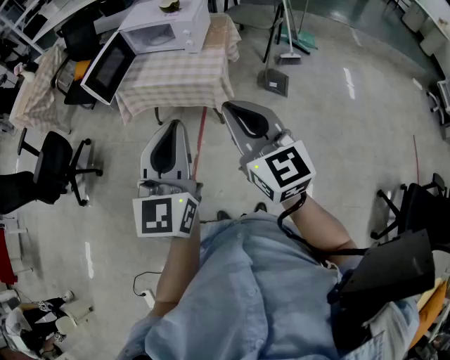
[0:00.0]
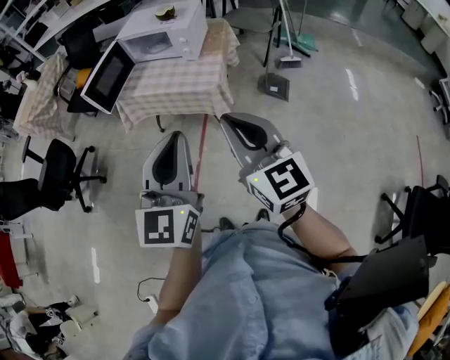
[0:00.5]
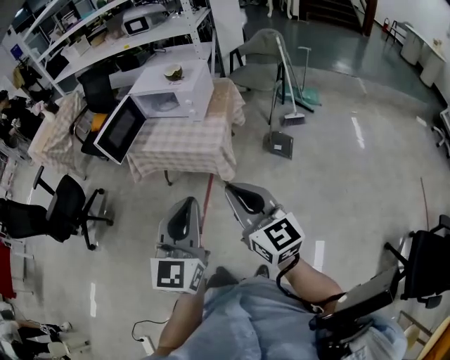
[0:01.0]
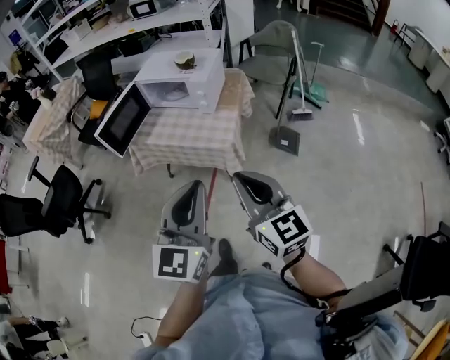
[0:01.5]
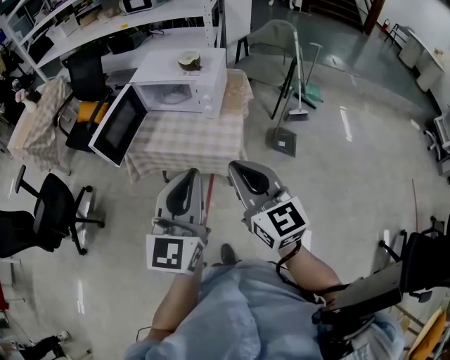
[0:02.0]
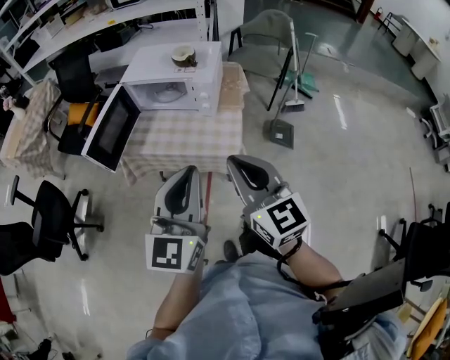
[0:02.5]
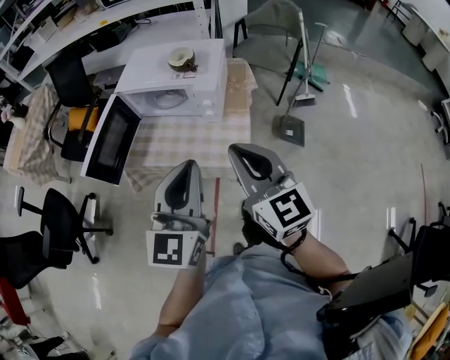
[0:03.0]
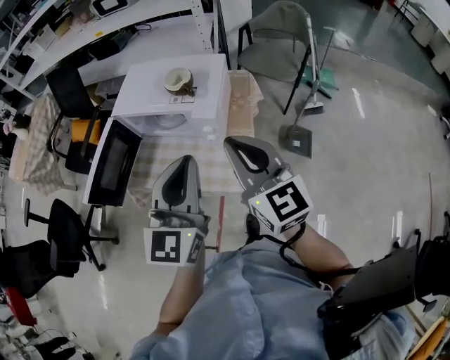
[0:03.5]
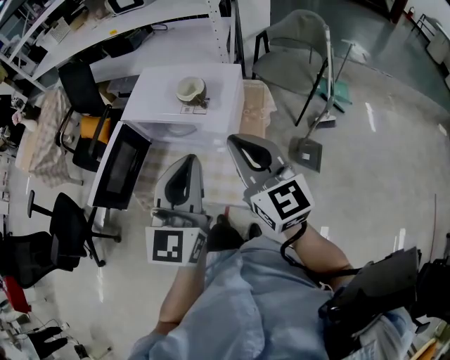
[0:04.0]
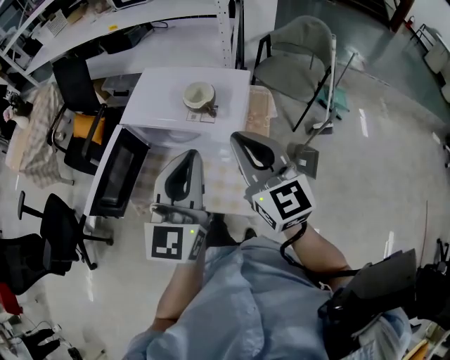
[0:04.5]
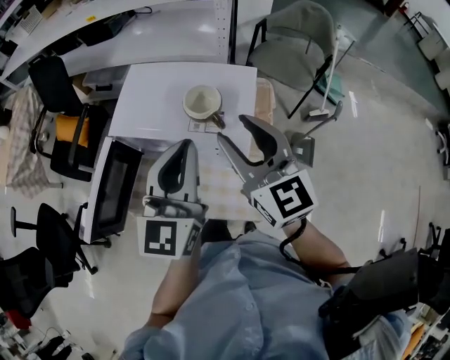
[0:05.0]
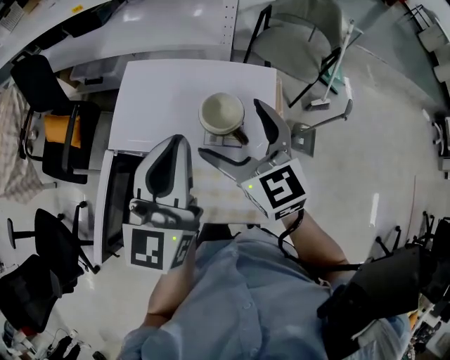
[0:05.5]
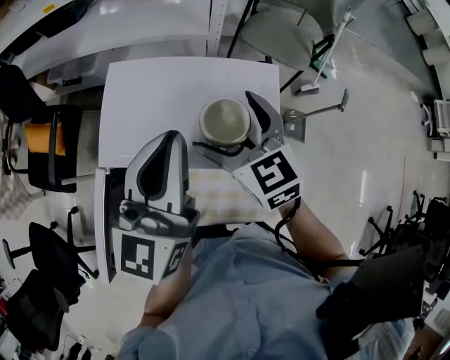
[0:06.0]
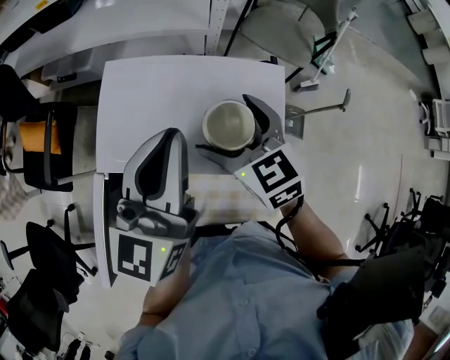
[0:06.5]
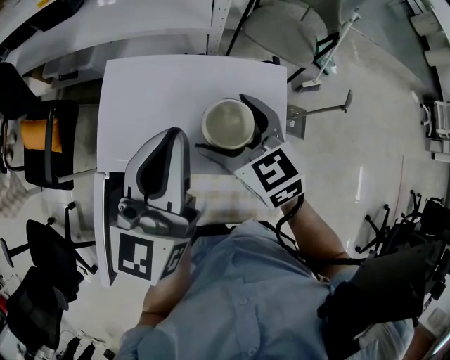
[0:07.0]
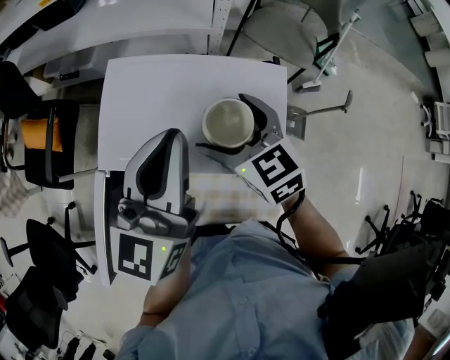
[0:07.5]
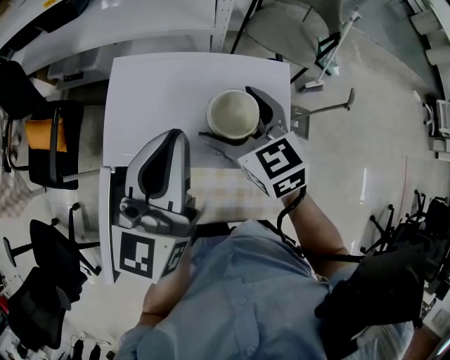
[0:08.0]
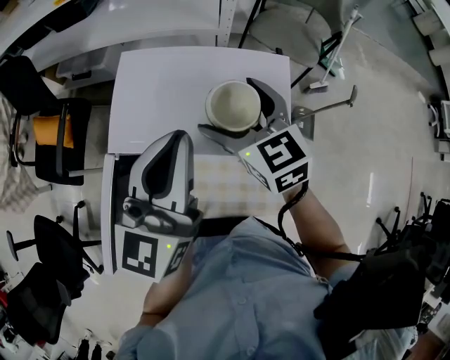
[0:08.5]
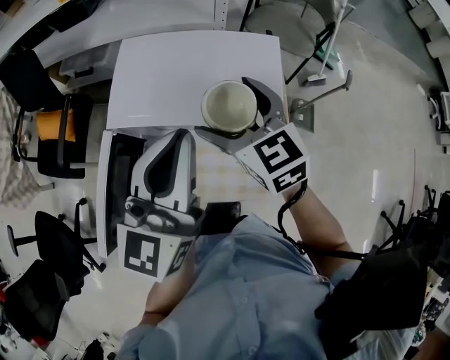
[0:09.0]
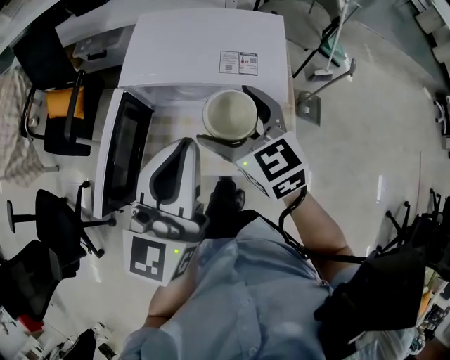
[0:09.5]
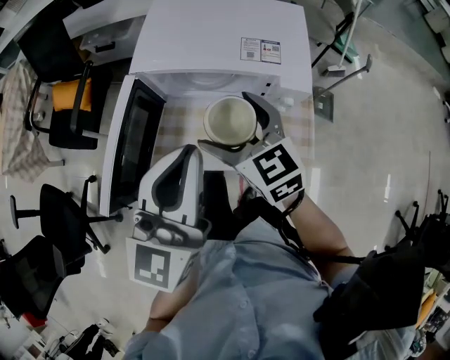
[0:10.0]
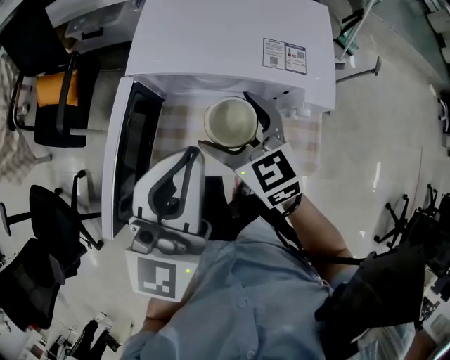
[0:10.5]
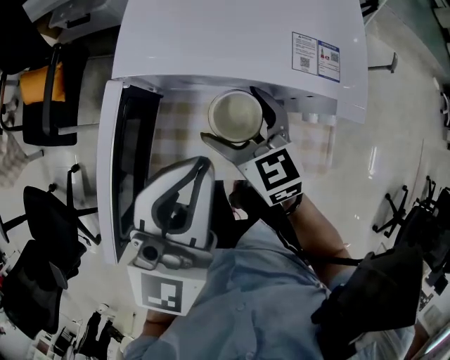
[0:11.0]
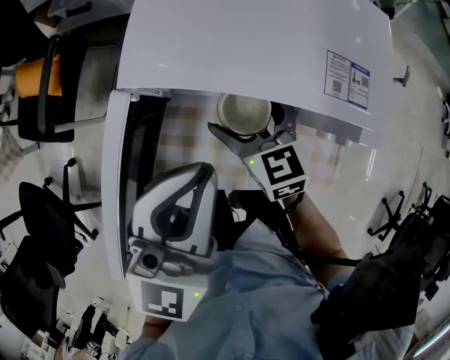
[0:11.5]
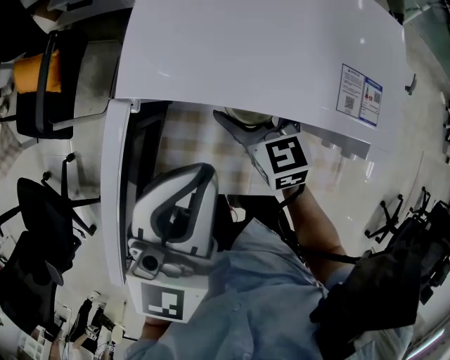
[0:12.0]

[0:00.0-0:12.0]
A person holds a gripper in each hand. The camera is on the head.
0:00.0 to 0:02.0: The two grippers go about 20 cm forward.
0:02.0 to 0:04.0: Both grippers move forward, some 30 cm.
0:04.0 to 0:06.0: The right gripper is displaced forward, downward and to the left by about 30 cm, turns by about 30 degrees, and opens; the left gripper heads forward and to the left, covering approximately 30 cm, and rotates about 20 degrees.
0:06.0 to 0:08.0: The grippers make only small movements.
0:08.0 to 0:10.0: The right gripper moves backward and to the left, some 25 cm. Meanwhile the left gripper goes roughly 25 cm backward.
0:10.0 to 0:12.0: The left gripper travels forward, downward and to the left by roughly 15 cm. The right gripper is displaced downward and forward by some 25 cm.

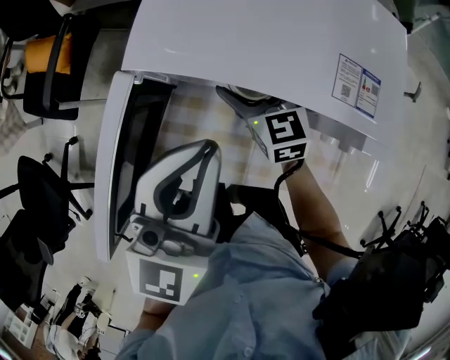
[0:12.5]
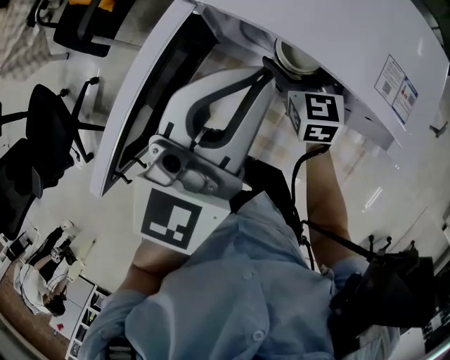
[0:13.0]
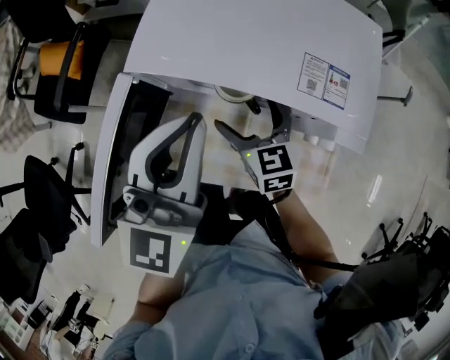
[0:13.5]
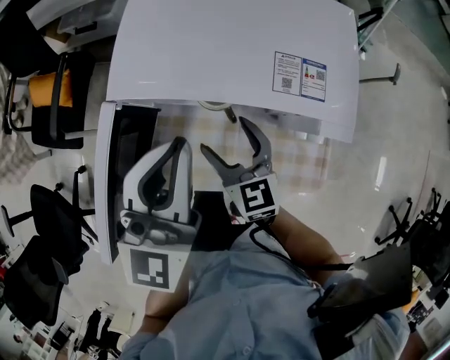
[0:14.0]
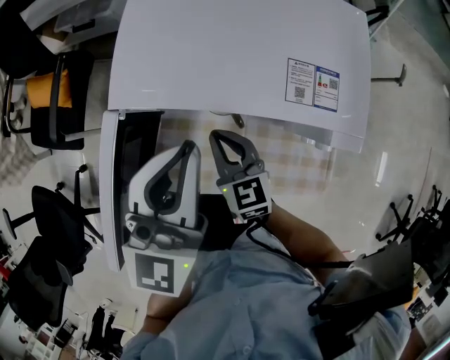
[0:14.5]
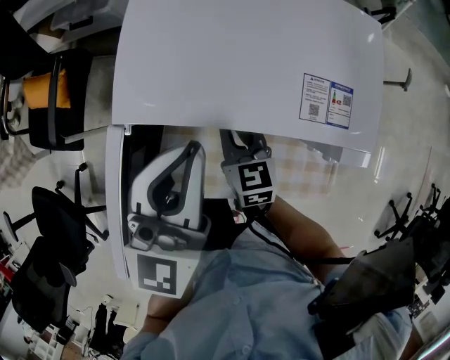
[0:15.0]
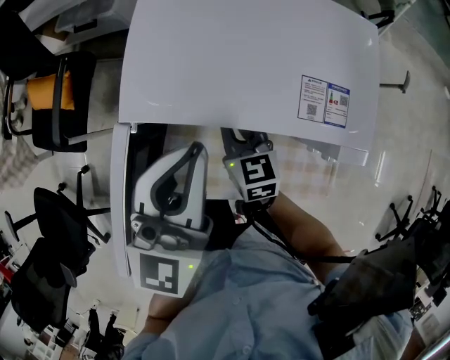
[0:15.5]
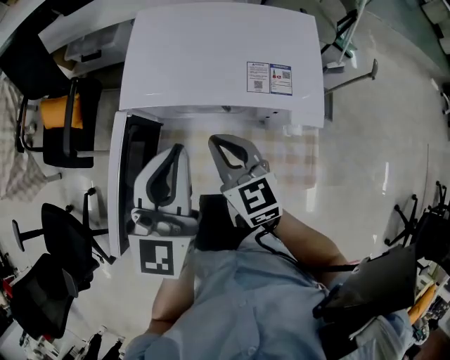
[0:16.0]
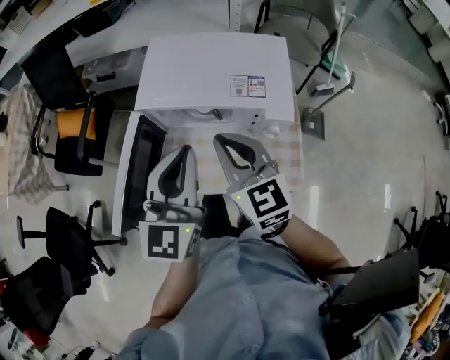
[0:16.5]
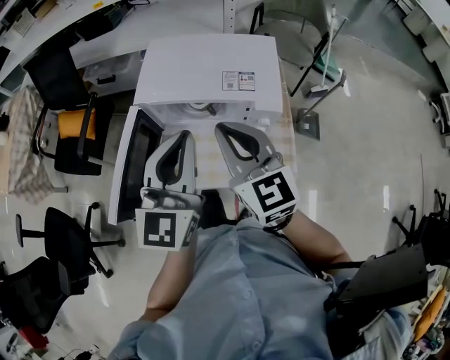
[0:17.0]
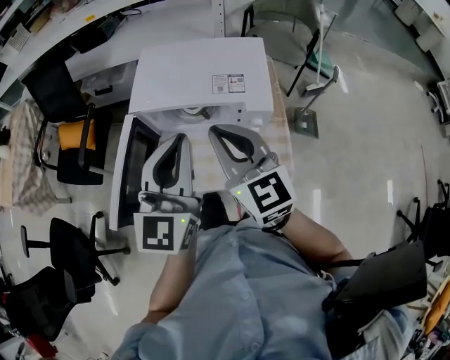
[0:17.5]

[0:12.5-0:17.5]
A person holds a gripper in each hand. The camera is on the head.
0:12.5 to 0:15.0: The right gripper closes.
0:15.0 to 0:17.5: The left gripper heads backward, upward and to the right, covering some 20 cm; the right gripper shifts approximately 35 cm upward and backward, and rotates approximately 30 degrees.

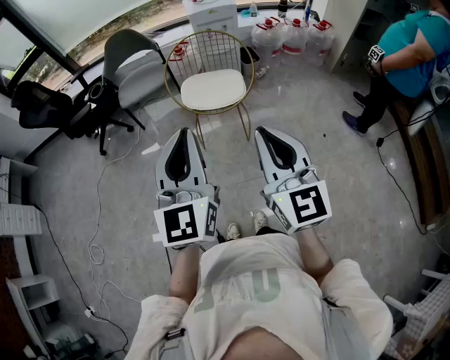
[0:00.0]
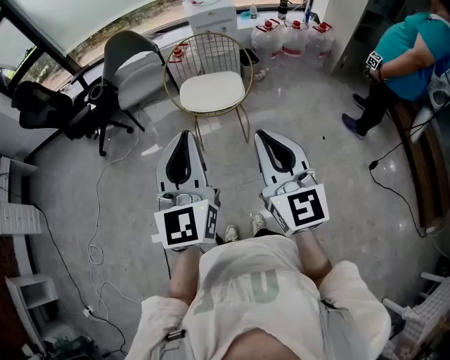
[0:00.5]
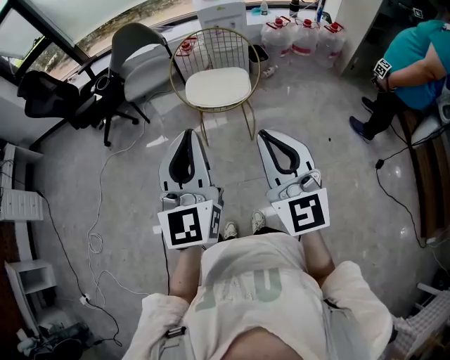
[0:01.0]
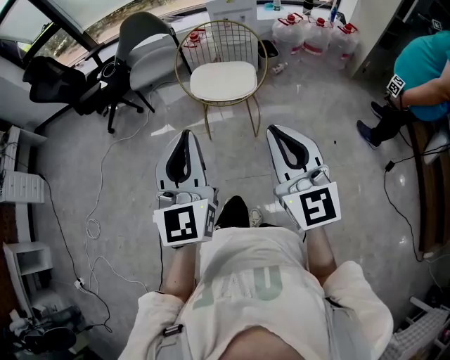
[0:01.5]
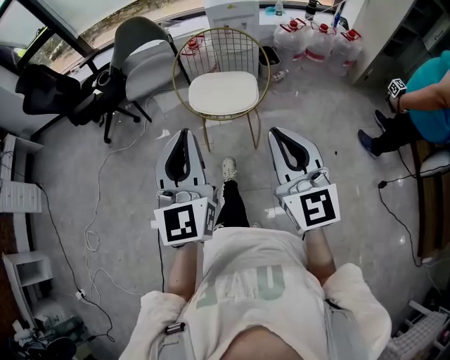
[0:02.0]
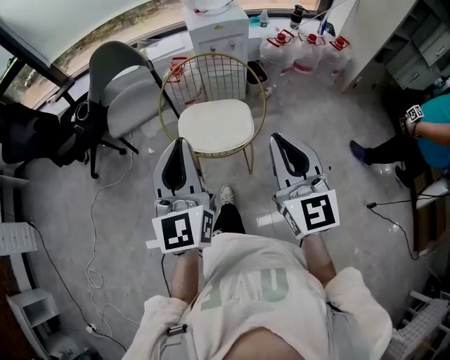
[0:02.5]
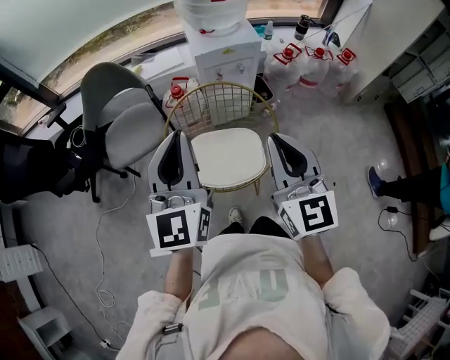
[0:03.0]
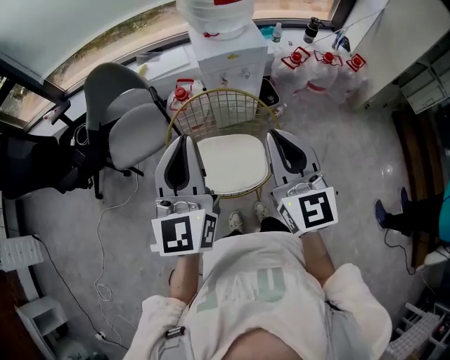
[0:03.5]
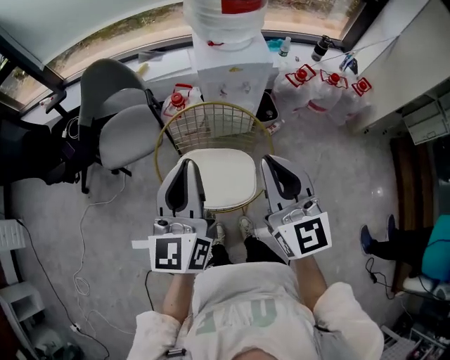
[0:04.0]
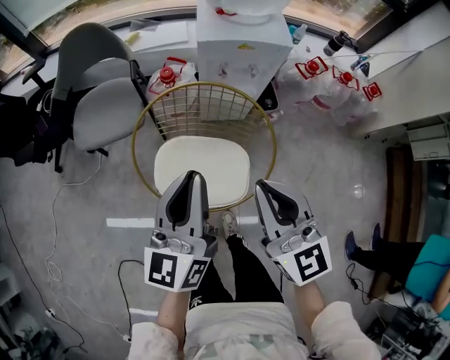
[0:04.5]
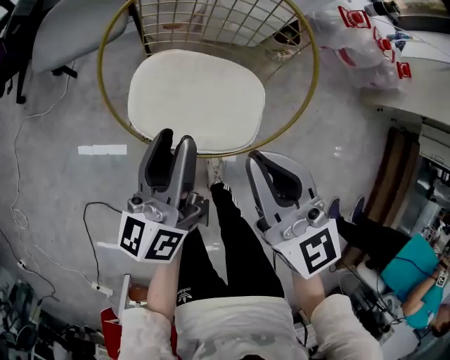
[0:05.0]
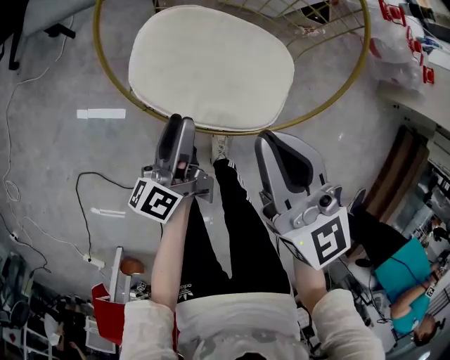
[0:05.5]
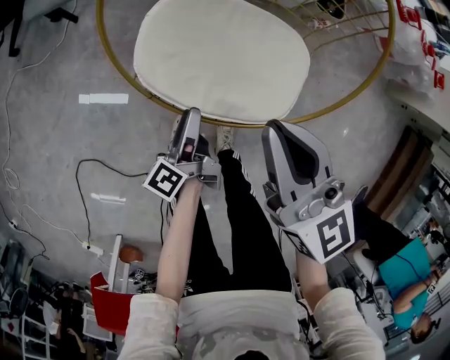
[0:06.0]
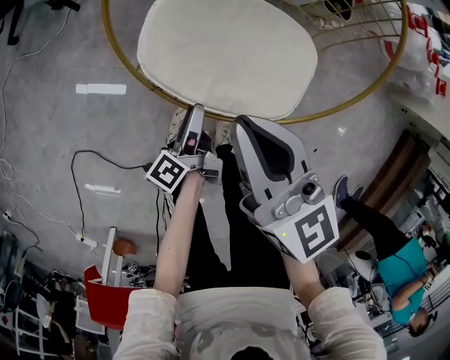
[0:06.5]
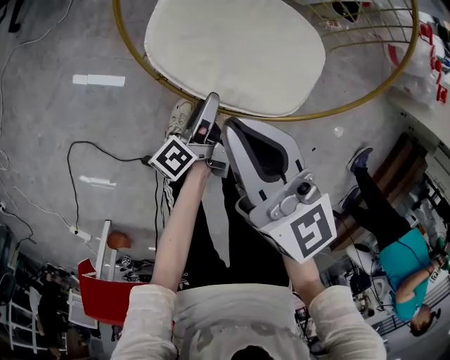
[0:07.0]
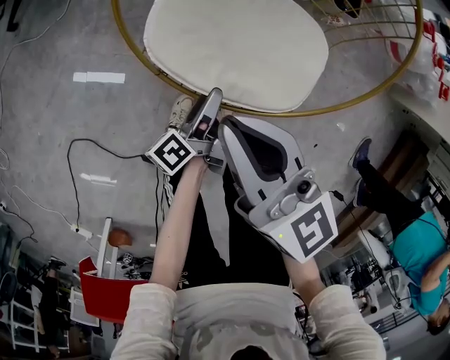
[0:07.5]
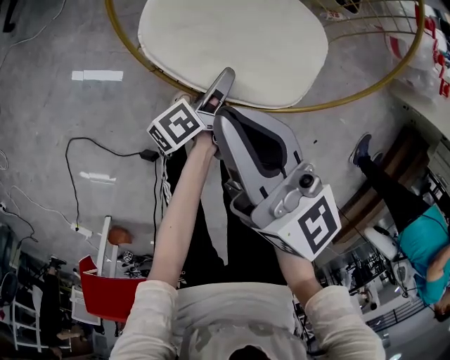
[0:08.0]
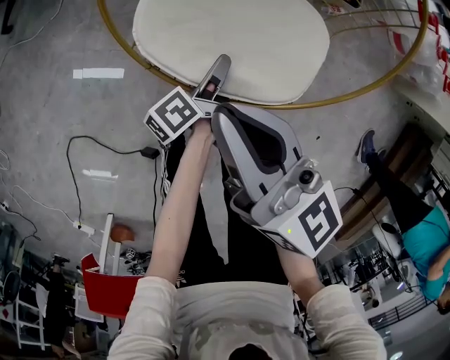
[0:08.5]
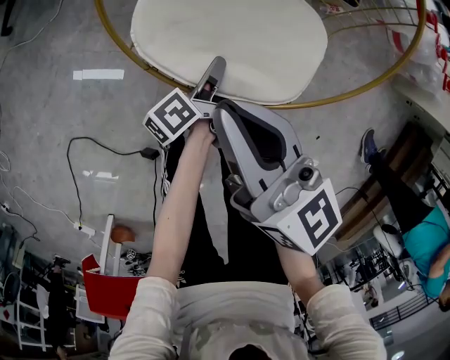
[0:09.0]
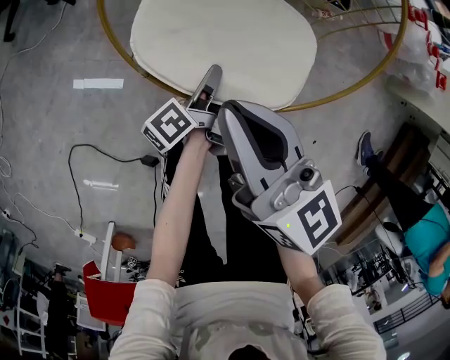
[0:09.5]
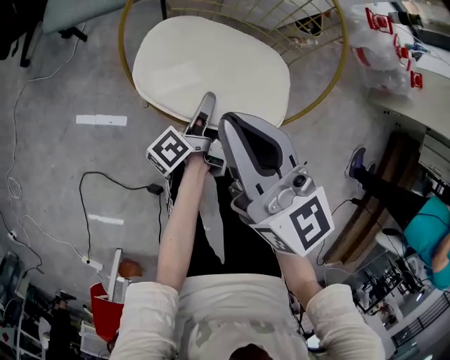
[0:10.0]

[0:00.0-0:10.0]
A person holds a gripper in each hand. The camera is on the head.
0:00.0 to 0:02.0: The right gripper is displaced forward and to the right by about 10 cm. Meanwhile the left gripper travels forward by approximately 10 cm.
0:02.0 to 0:04.0: The two grippers travel together, forward, approximately 40 cm. The left gripper changes its angle by some 20 degrees.
0:04.0 to 0:06.0: The right gripper is displaced downward by some 35 cm, and changes its angle by approximately 30 degrees; the left gripper moves downward, roughly 60 cm, twists about 70 degrees counterclockwise, seen from behind, and opens up.
0:06.0 to 0:08.0: The left gripper is displaced to the right by roughly 5 cm. The right gripper heads to the left, covering approximately 10 cm.
0:08.0 to 0:10.0: The two grippers go roughly 10 cm upward. The left gripper closes its fingers.
